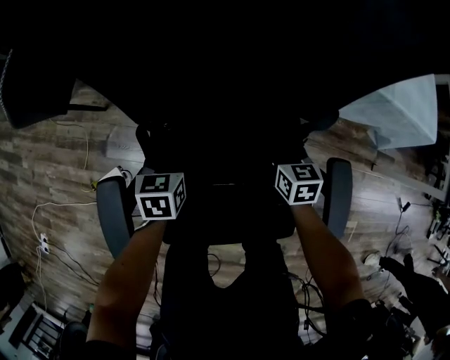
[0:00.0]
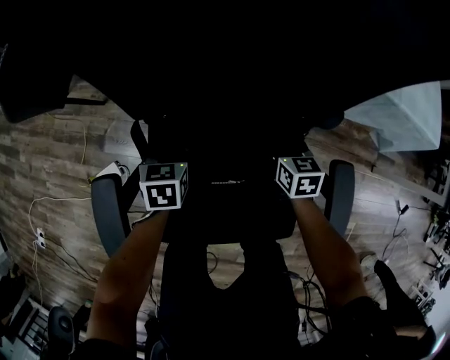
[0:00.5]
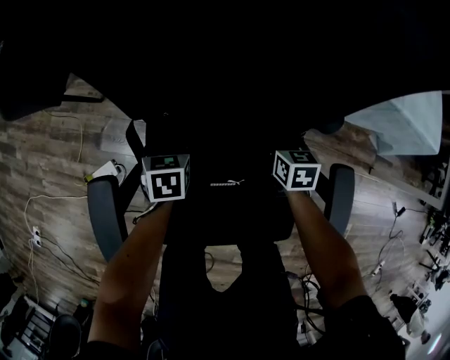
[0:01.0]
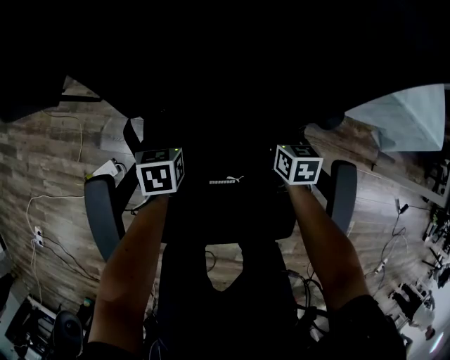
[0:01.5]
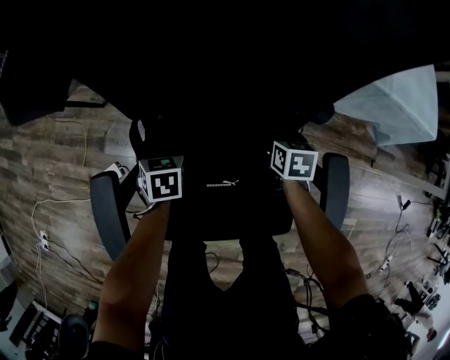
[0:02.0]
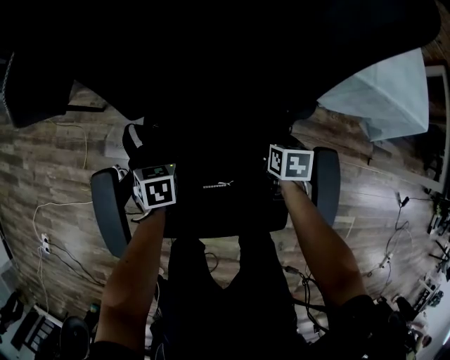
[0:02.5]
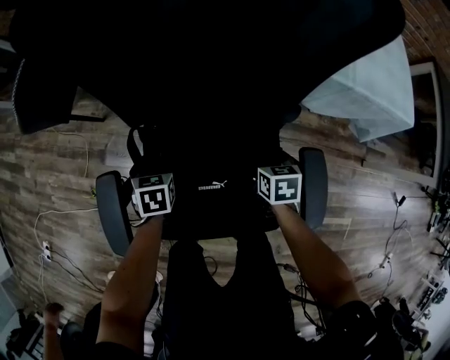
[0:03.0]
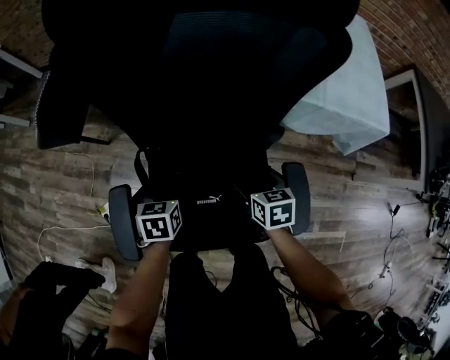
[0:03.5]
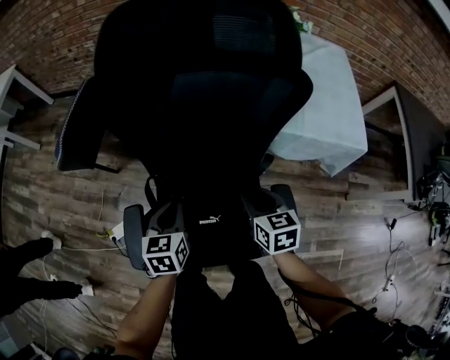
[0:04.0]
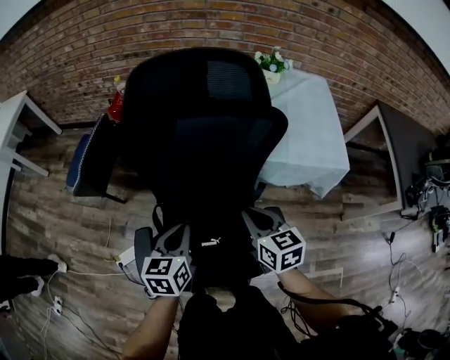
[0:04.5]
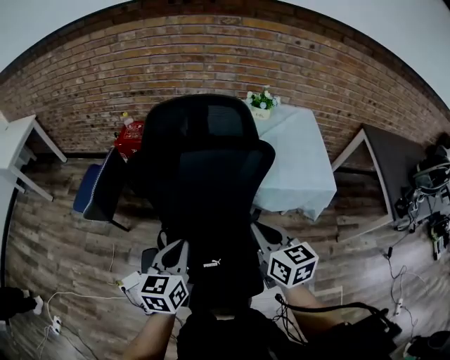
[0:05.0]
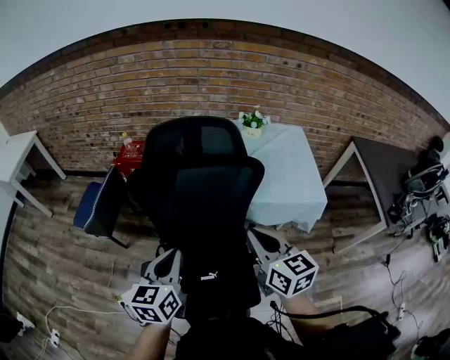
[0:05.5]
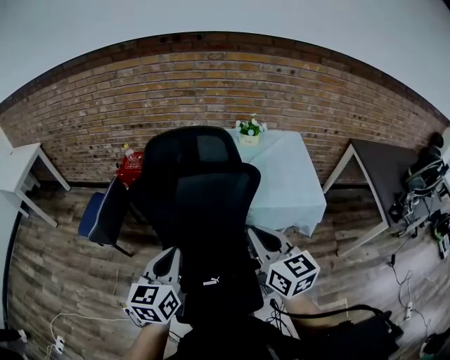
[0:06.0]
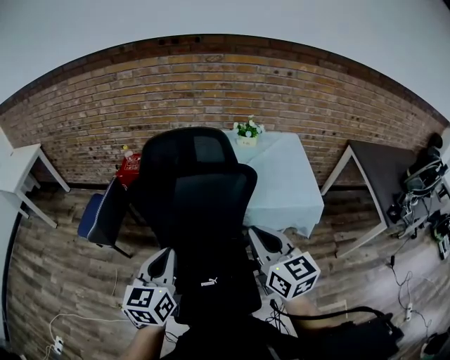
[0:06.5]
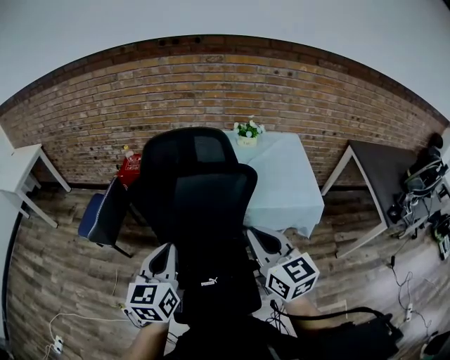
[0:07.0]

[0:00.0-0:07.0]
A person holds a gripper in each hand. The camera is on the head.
0:00.0 to 0:02.0: The right gripper opens its fingers; the left gripper opens its fingers.
0:02.0 to 0:03.5: The two grippers go about 15 cm upward and backward.
0:03.5 to 0:05.0: Both grippers travel together upward, roughly 35 cm. The right gripper turns by about 30 degrees, and closes its fingers. The left gripper tips its fingers upward by approximately 30 degrees, and closes.
0:05.0 to 0:07.0: The grippers both shift upward by roughly 10 cm.

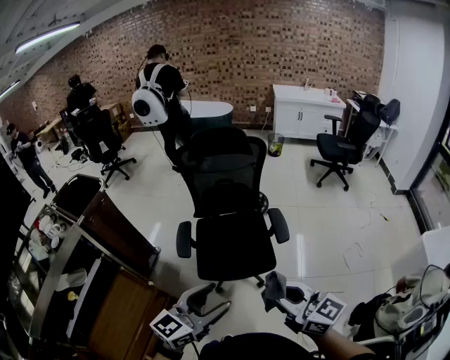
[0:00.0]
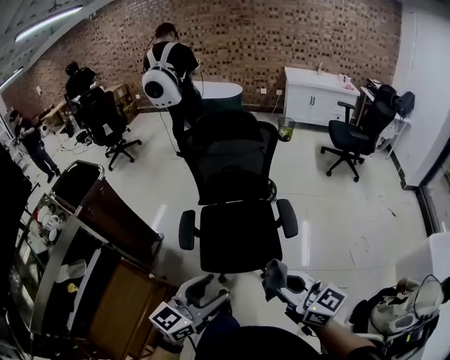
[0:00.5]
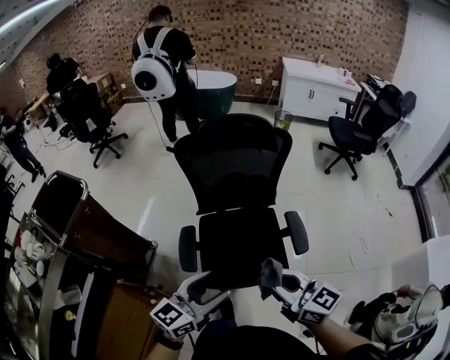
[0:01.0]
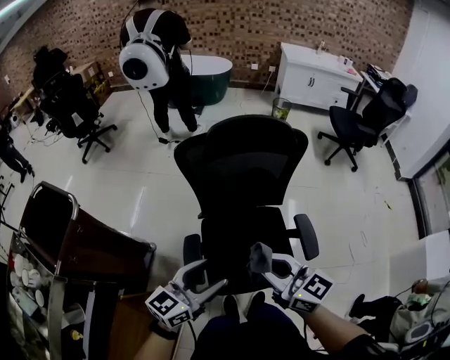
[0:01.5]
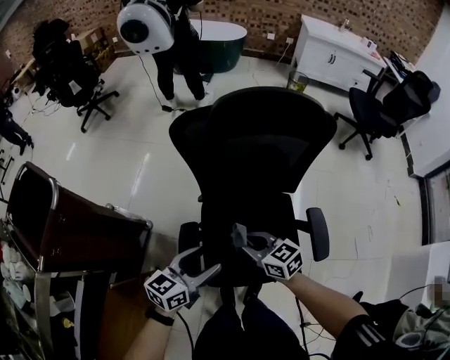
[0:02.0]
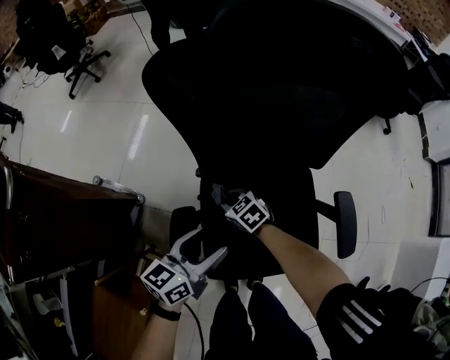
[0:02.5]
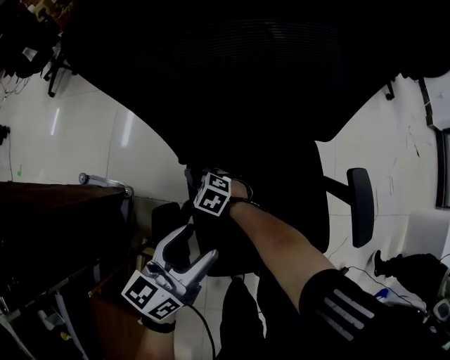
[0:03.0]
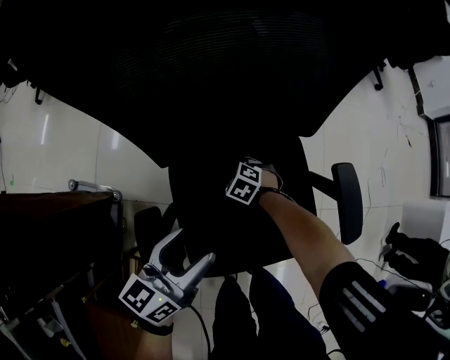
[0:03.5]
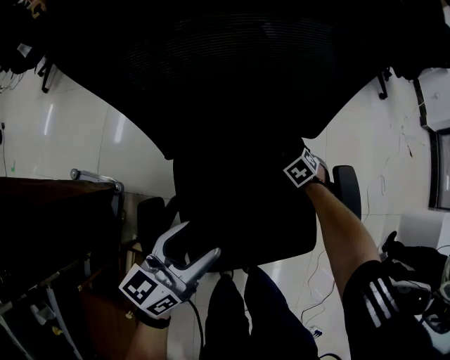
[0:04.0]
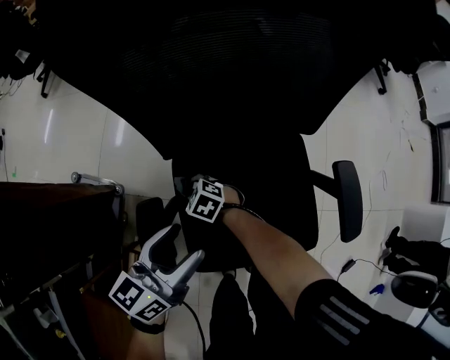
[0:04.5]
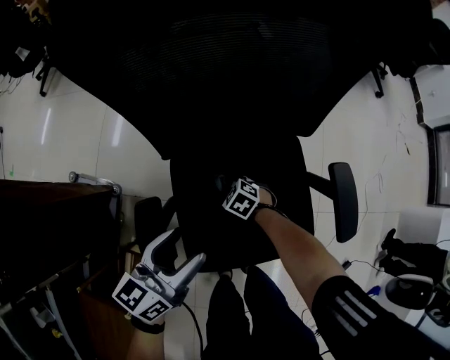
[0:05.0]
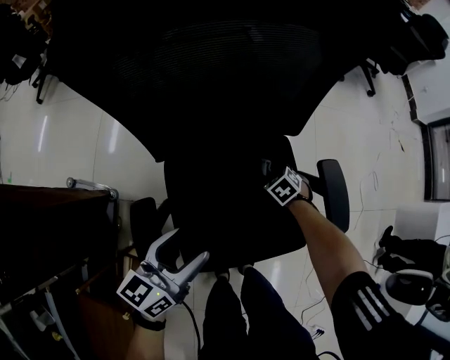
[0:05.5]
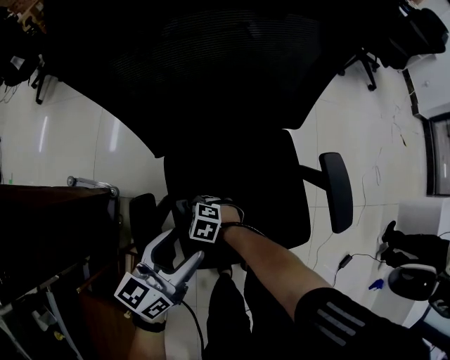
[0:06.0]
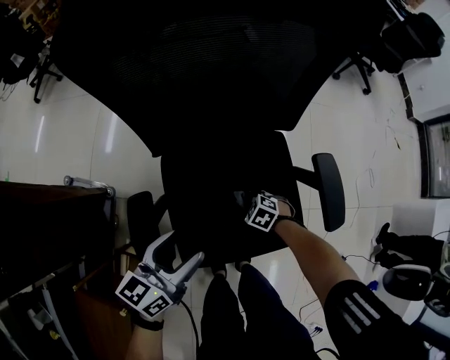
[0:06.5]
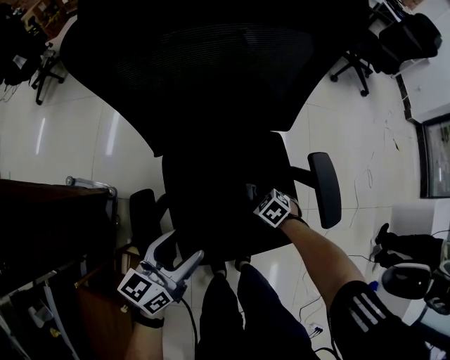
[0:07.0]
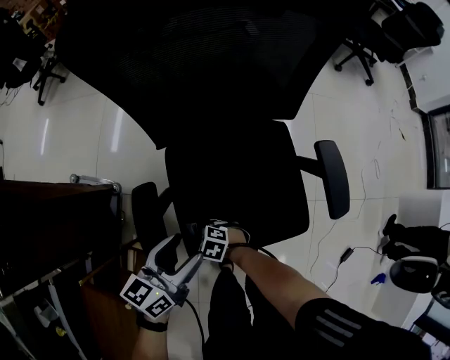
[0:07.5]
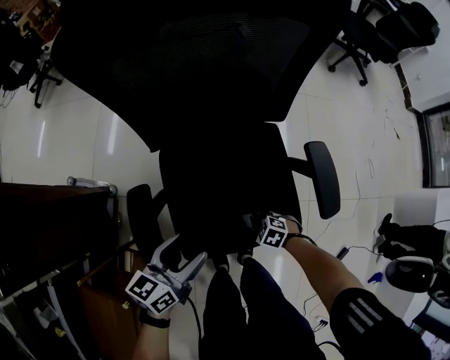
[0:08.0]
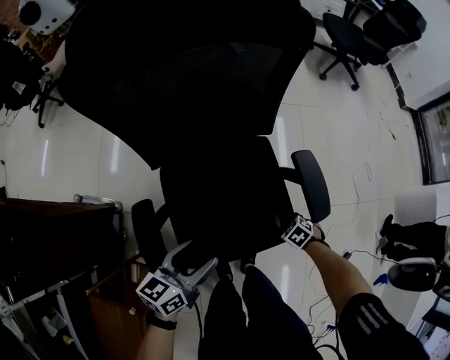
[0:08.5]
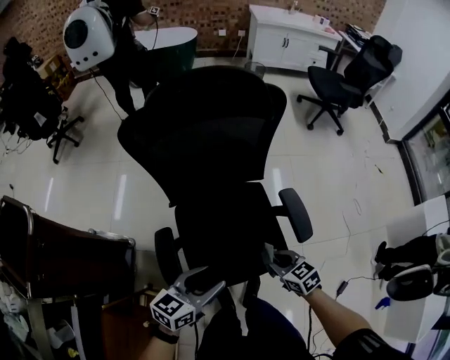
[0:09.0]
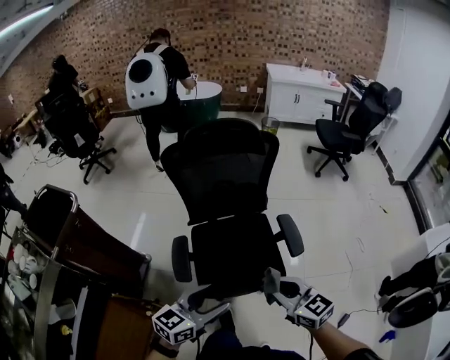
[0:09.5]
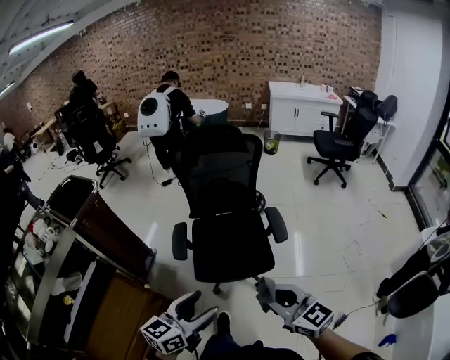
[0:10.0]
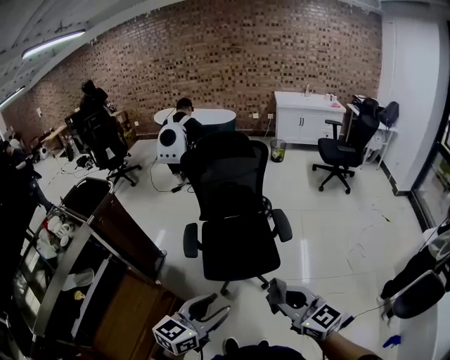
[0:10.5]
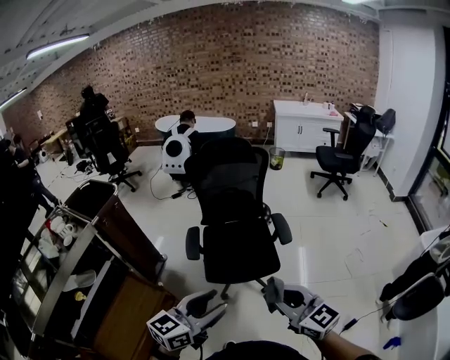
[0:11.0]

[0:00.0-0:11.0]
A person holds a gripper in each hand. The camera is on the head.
0:00.0 to 0:02.0: Both grippers are carried forward and to the left, some 50 cm. Both grippers travel together downward, roughly 25 cm. The left gripper swivels about 20 degrees, while the right gripper rotates roughly 30 degrees.
0:02.0 to 0:03.5: The left gripper is displaced downward and forward by some 15 cm; the right gripper travels downward by about 40 cm, and tips its fingers downward by roughly 40 degrees.
0:03.5 to 0:05.5: The right gripper moves some 15 cm, and swivels roughly 20 degrees.
0:05.5 to 0:07.5: The left gripper changes place by roughly 5 cm; the right gripper moves approximately 35 cm, and swivels some 30 degrees.
0:07.5 to 0:09.0: The right gripper goes some 25 cm upward, and turns by about 50 degrees. The left gripper heads upward, covering about 15 cm.
0:09.0 to 0:11.0: The two grippers travel together, backward, roughly 40 cm. Both grippers travel together upward, roughly 30 cm. The right gripper angles its fingers upward, by about 40 degrees; the left gripper swivels some 20 degrees.

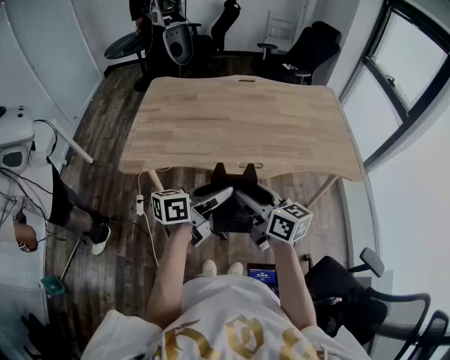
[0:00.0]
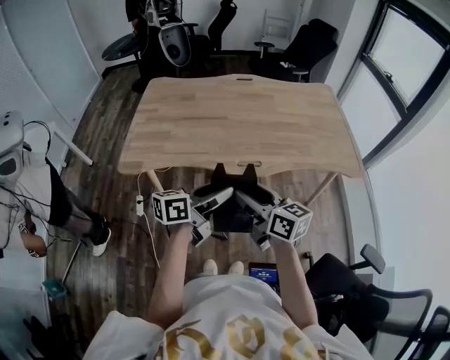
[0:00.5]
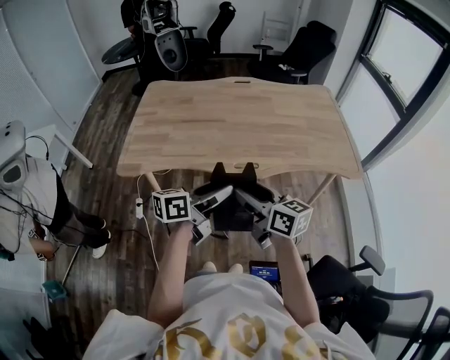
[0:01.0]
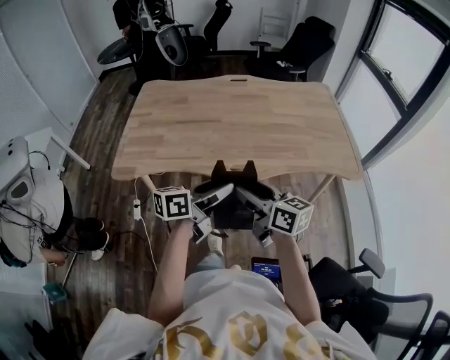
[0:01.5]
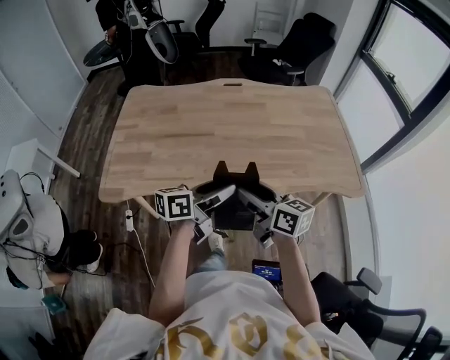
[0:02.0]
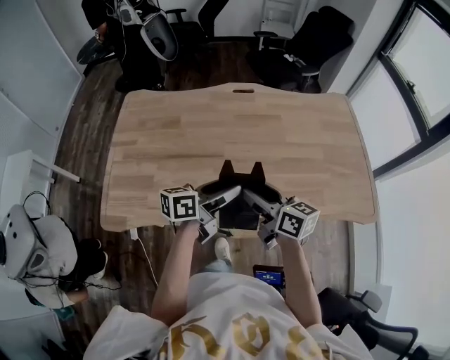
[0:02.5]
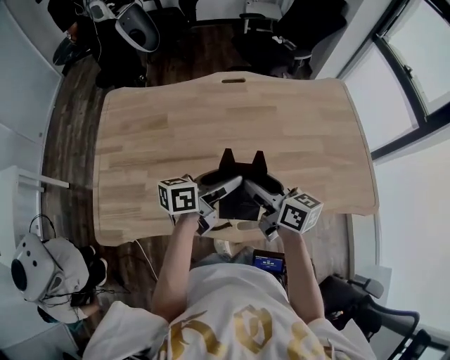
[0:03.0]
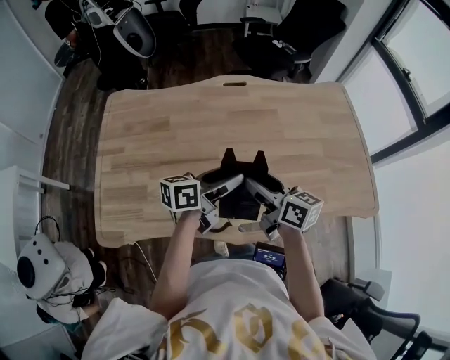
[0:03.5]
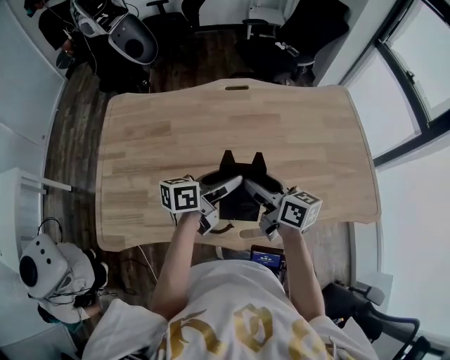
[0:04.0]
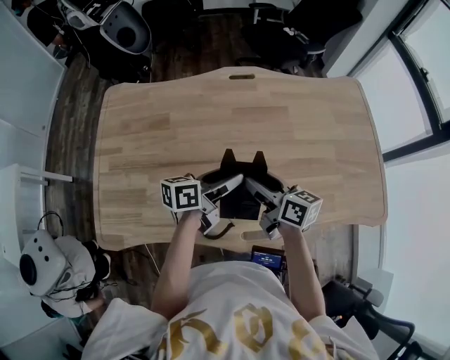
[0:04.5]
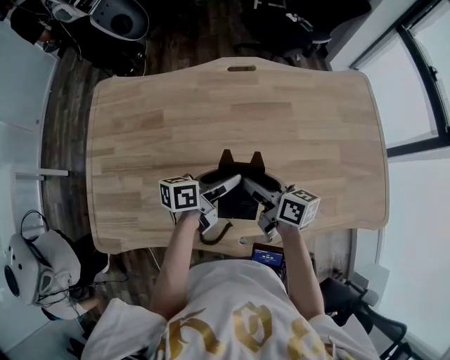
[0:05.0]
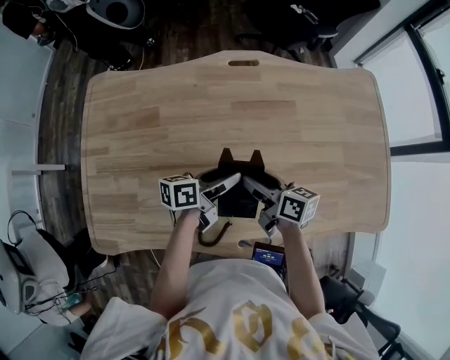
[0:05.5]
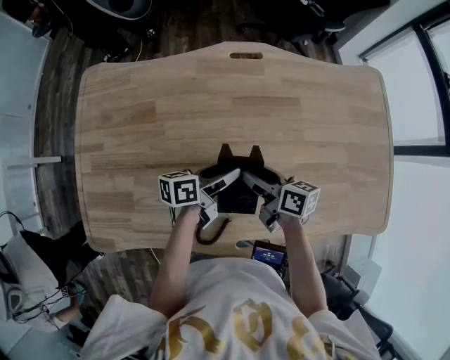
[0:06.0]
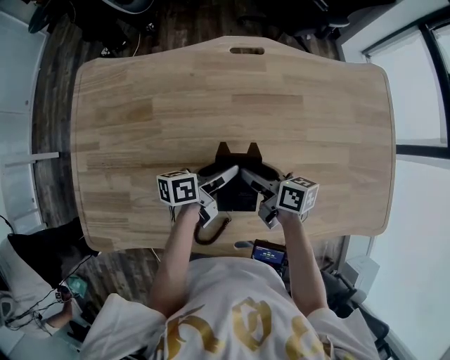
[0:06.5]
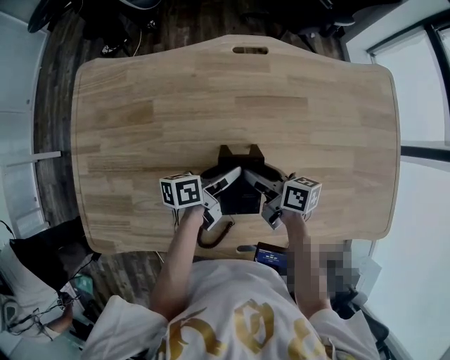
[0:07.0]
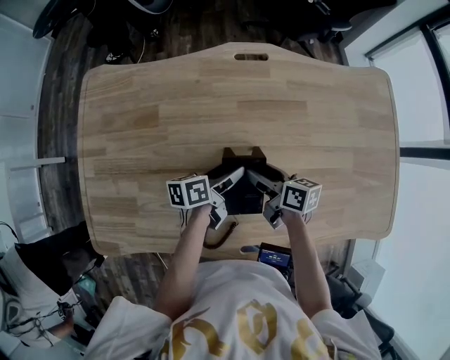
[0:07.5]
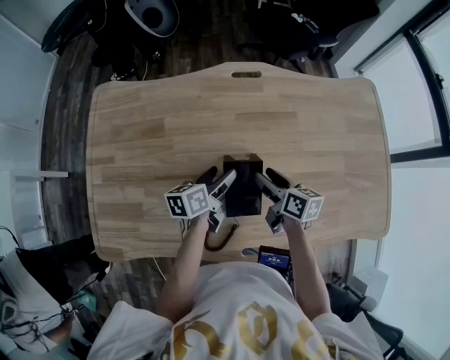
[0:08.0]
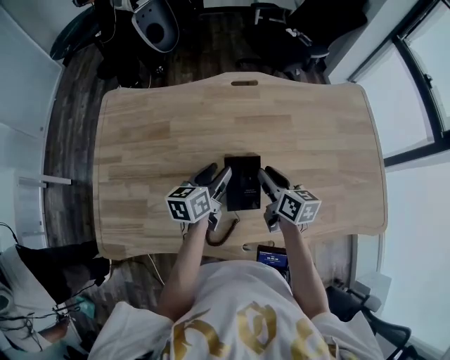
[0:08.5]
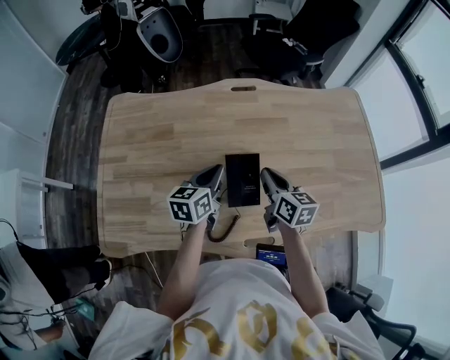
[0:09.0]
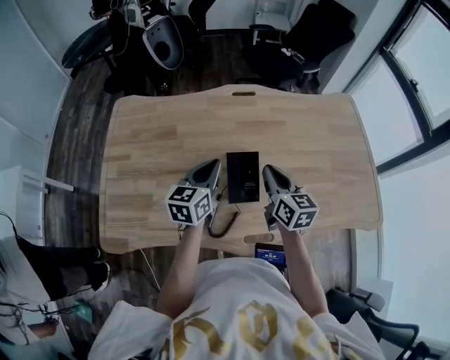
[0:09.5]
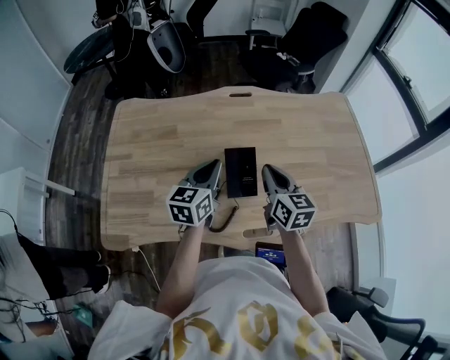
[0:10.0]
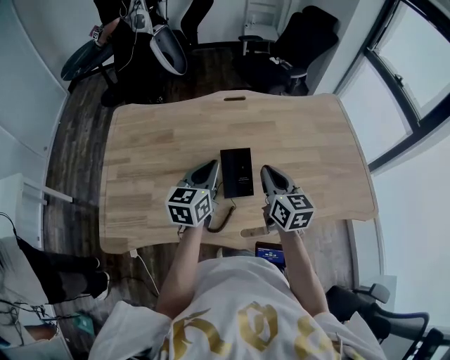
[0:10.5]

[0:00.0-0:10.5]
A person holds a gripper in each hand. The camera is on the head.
0:00.0 to 0:02.0: The grippers both shift forward by about 15 cm.
0:02.0 to 0:04.0: Both grippers travel together forward, approximately 30 cm.
0:04.0 to 0:06.5: Both grippers travel together downward and forward, approximately 20 cm. The right gripper turns by roughly 20 degrees. Meanwhile the left gripper rotates some 20 degrees.
0:06.5 to 0:08.5: The two grippers go about 10 cm upward. The left gripper rotates some 30 degrees. The right gripper swivels some 20 degrees, and closes its fingers.
0:08.5 to 0:10.5: The two grippers go approximately 15 cm upward and backward. The left gripper changes its angle by approximately 20 degrees, and closes. The right gripper swivels approximately 20 degrees, and closes.
